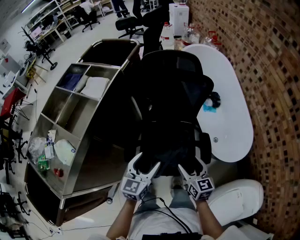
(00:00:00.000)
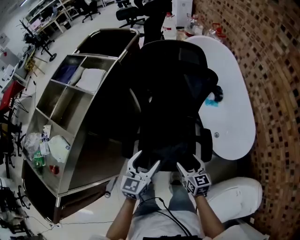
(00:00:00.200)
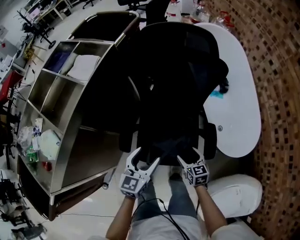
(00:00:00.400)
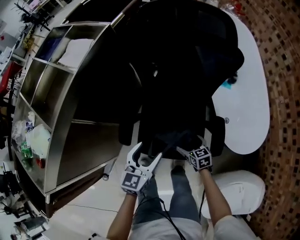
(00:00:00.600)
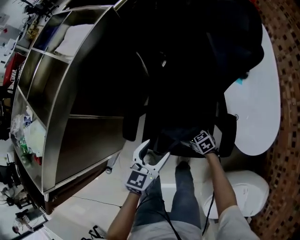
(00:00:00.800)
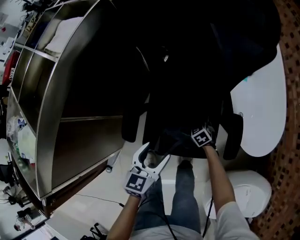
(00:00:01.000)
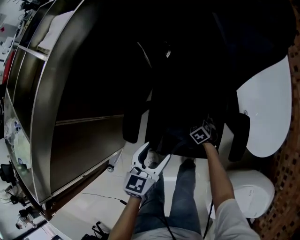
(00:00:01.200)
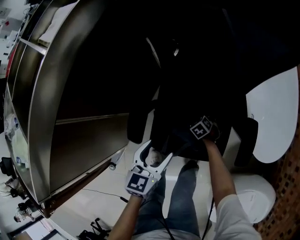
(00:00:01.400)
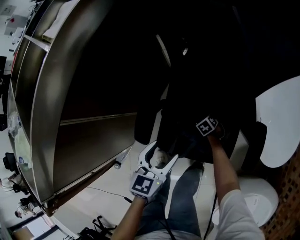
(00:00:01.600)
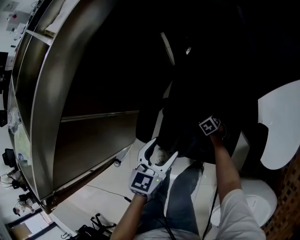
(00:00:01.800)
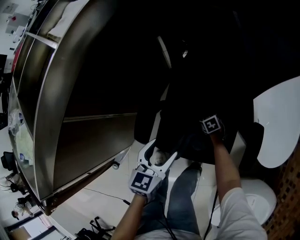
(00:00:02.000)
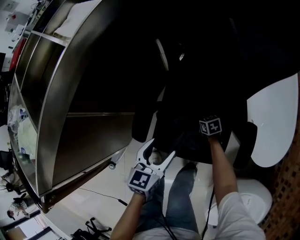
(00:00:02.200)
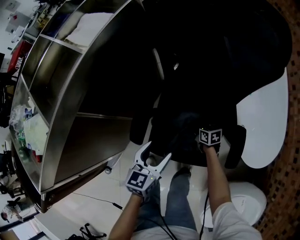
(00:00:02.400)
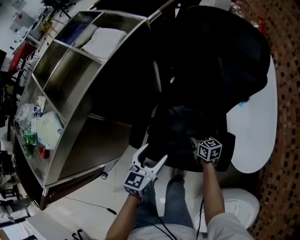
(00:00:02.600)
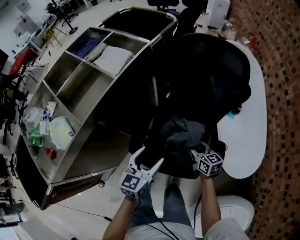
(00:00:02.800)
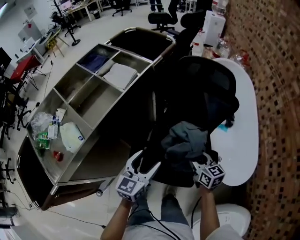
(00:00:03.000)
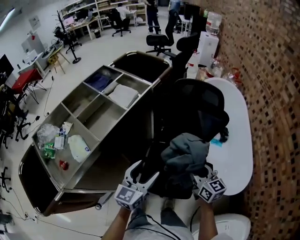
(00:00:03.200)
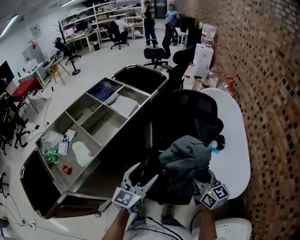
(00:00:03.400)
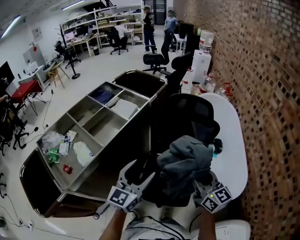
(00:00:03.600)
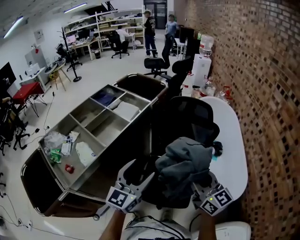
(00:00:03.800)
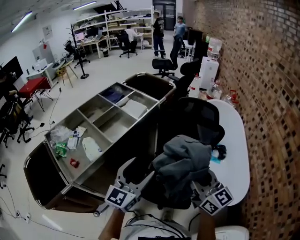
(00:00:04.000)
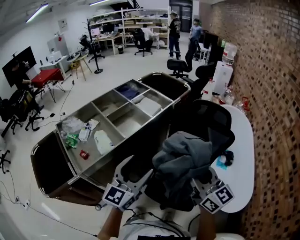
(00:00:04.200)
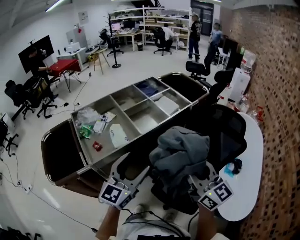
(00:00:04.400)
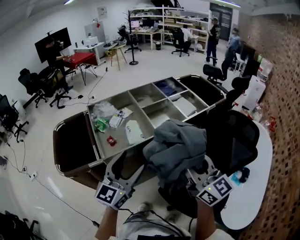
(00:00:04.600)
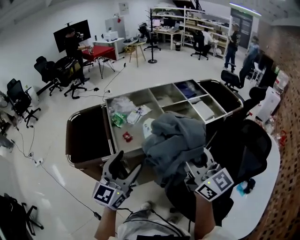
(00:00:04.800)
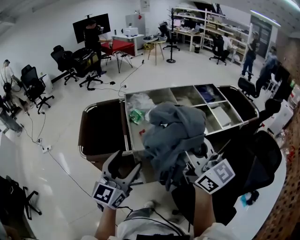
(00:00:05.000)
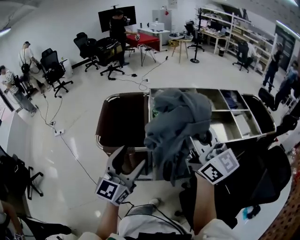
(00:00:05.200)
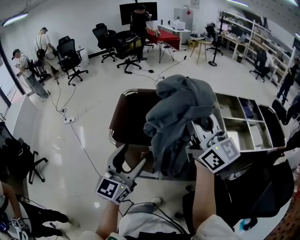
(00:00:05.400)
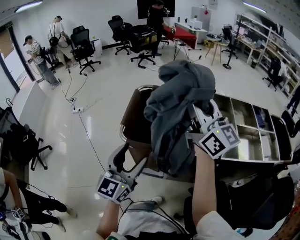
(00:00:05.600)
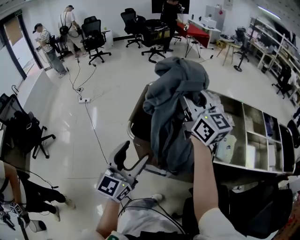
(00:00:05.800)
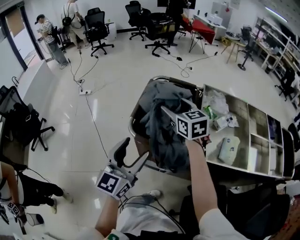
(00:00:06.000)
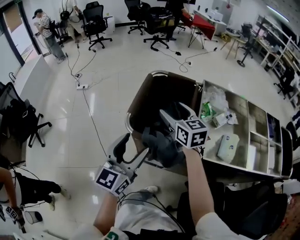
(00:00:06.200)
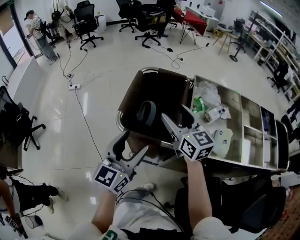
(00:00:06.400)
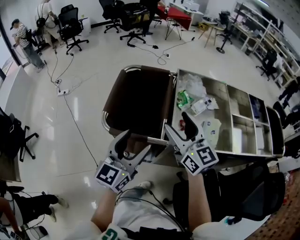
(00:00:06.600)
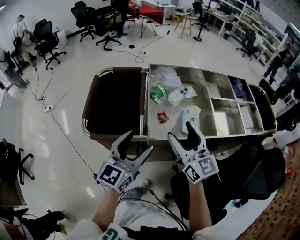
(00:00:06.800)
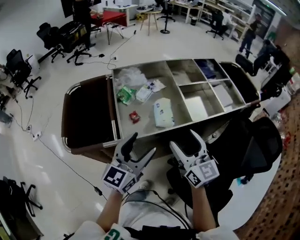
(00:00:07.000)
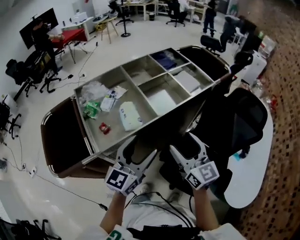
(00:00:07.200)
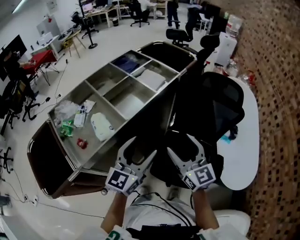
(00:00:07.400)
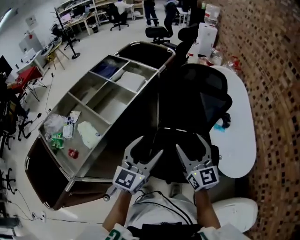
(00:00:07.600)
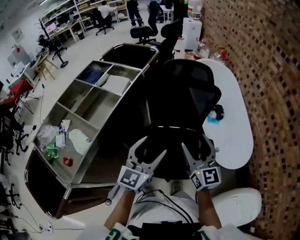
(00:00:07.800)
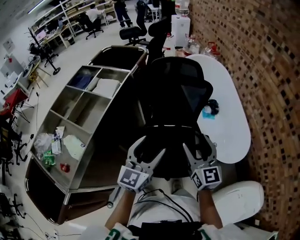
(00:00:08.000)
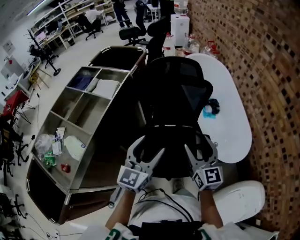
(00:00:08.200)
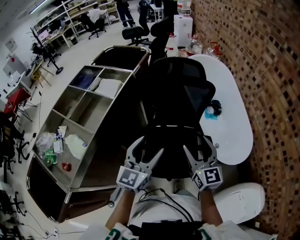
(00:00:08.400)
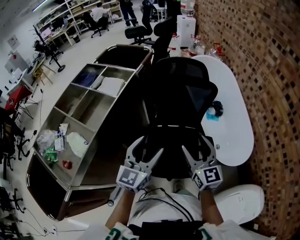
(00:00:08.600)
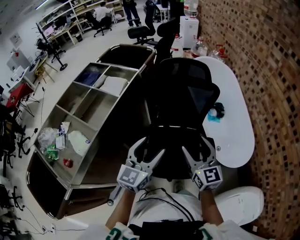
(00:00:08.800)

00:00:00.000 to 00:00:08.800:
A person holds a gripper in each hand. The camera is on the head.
00:00:00.000 to 00:00:01.400: The right gripper goes about 50 cm downward, tips its fingers downward by some 50 degrees, and opens. The left gripper heads downward, covering about 25 cm.
00:00:01.400 to 00:00:03.000: The left gripper heads upward, covering about 25 cm, and changes its angle by some 20 degrees, while the right gripper travels upward by roughly 50 cm, angles its fingers upward, by some 50 degrees, and closes.
00:00:03.000 to 00:00:04.400: The left gripper is displaced upward, to the left and backward by about 30 cm, and rotates approximately 30 degrees. Meanwhile the right gripper heads upward and to the left, covering about 40 cm, and swivels some 40 degrees.
00:00:04.400 to 00:00:05.800: The pair of grippers is taken about 50 cm. The left gripper turns by about 60 degrees. Meanwhile the right gripper rotates some 50 degrees.
00:00:05.800 to 00:00:07.400: The two grippers travel together, about 50 cm. The left gripper changes its angle by approximately 70 degrees; the right gripper turns by about 60 degrees.
00:00:07.400 to 00:00:08.800: The right gripper moves about 20 cm, and changes its angle by approximately 30 degrees; the left gripper changes place by approximately 15 cm.

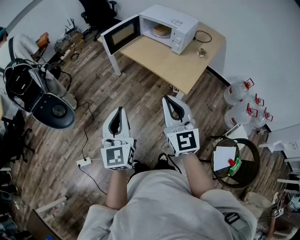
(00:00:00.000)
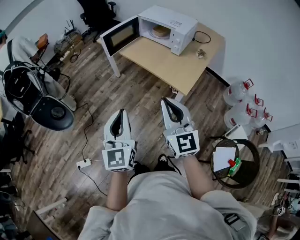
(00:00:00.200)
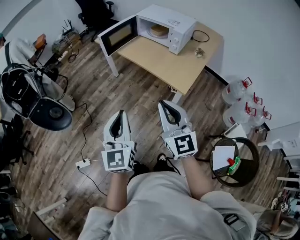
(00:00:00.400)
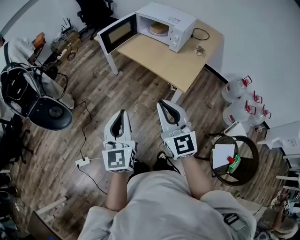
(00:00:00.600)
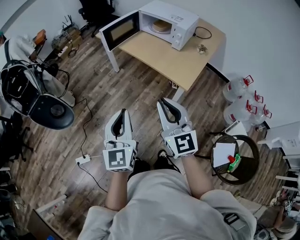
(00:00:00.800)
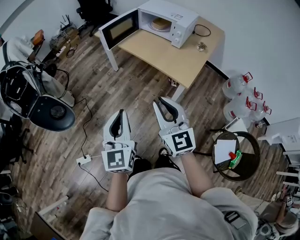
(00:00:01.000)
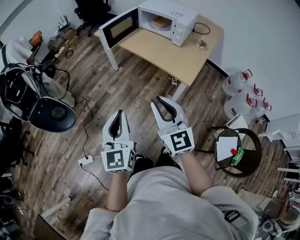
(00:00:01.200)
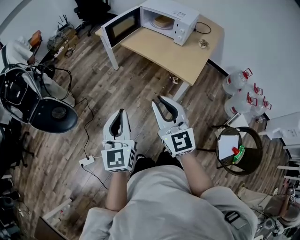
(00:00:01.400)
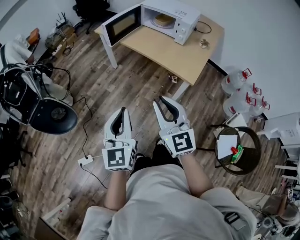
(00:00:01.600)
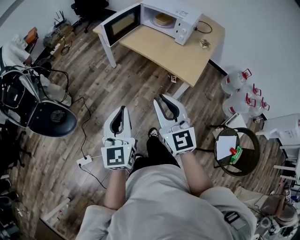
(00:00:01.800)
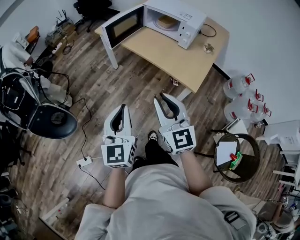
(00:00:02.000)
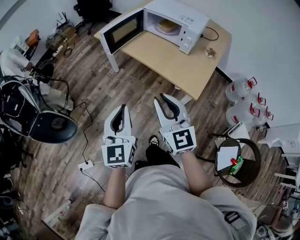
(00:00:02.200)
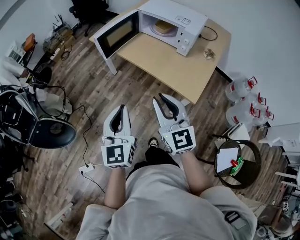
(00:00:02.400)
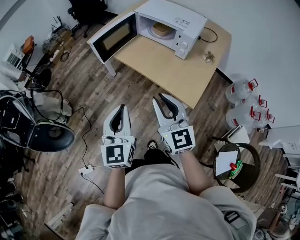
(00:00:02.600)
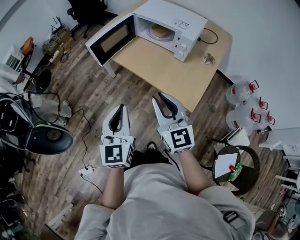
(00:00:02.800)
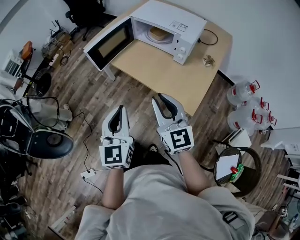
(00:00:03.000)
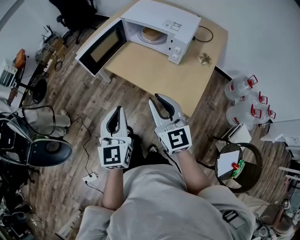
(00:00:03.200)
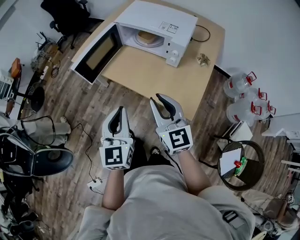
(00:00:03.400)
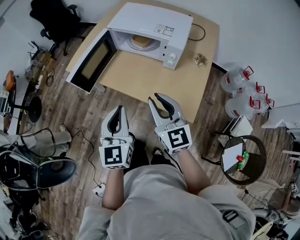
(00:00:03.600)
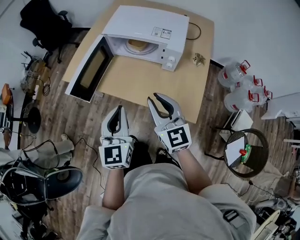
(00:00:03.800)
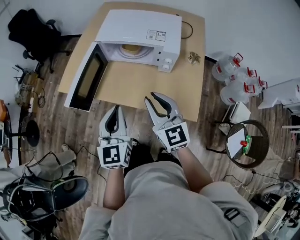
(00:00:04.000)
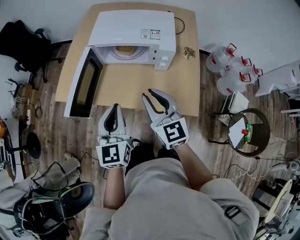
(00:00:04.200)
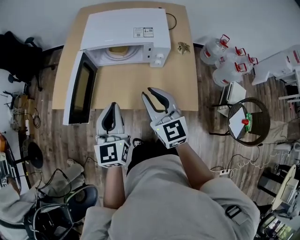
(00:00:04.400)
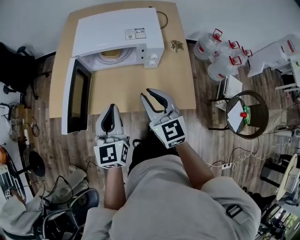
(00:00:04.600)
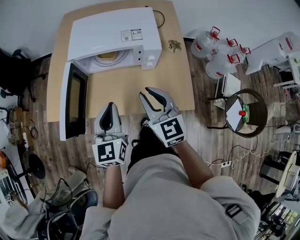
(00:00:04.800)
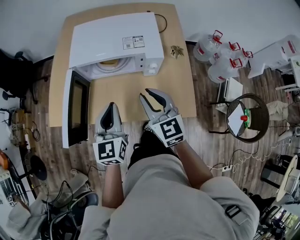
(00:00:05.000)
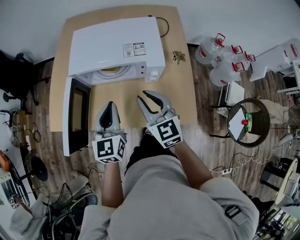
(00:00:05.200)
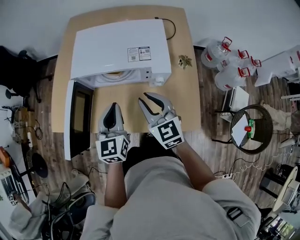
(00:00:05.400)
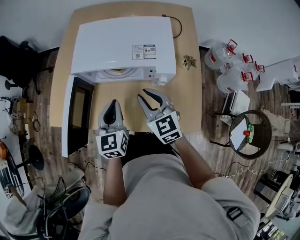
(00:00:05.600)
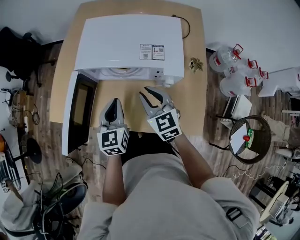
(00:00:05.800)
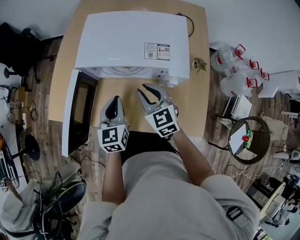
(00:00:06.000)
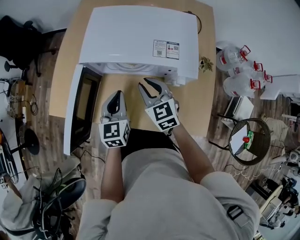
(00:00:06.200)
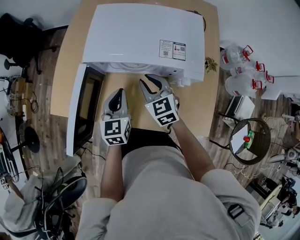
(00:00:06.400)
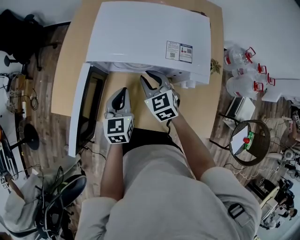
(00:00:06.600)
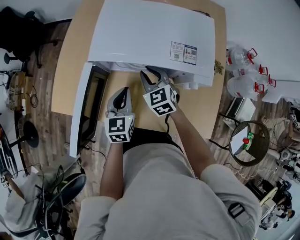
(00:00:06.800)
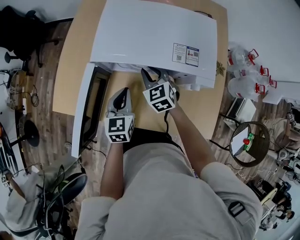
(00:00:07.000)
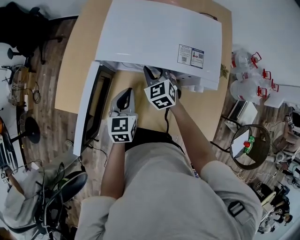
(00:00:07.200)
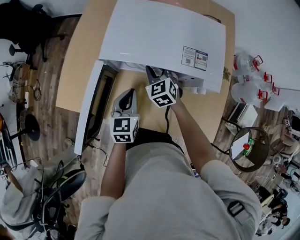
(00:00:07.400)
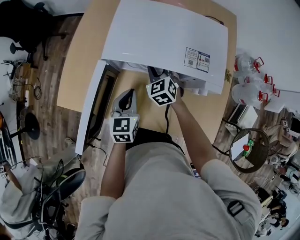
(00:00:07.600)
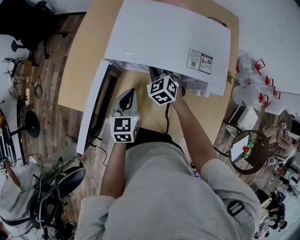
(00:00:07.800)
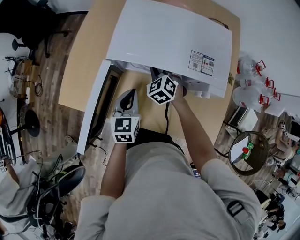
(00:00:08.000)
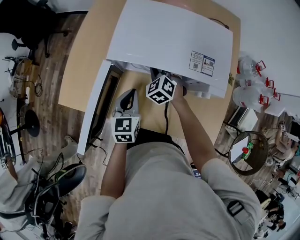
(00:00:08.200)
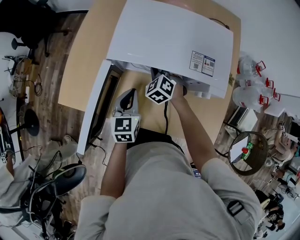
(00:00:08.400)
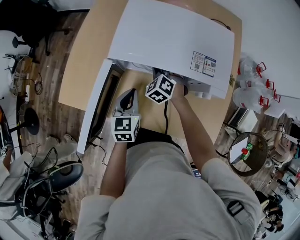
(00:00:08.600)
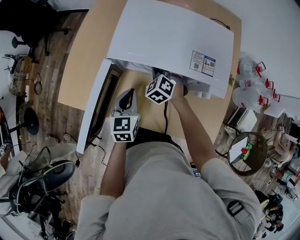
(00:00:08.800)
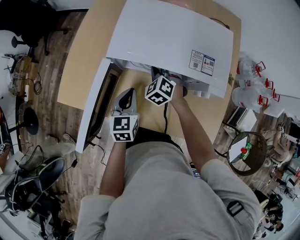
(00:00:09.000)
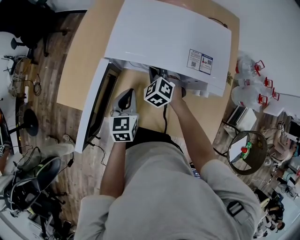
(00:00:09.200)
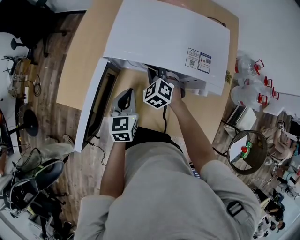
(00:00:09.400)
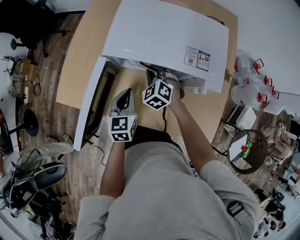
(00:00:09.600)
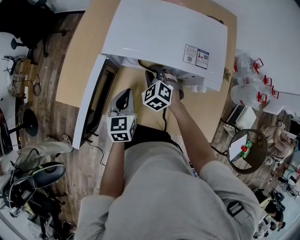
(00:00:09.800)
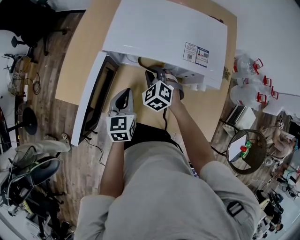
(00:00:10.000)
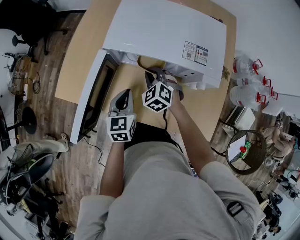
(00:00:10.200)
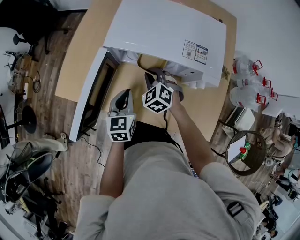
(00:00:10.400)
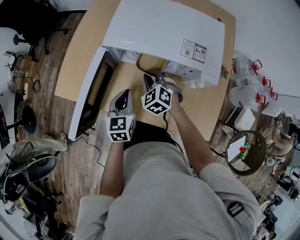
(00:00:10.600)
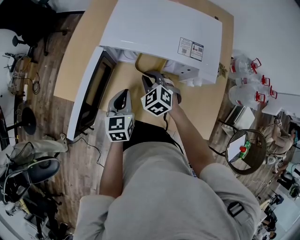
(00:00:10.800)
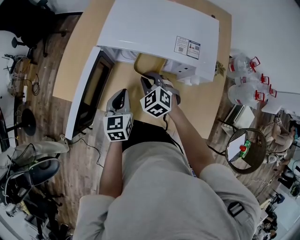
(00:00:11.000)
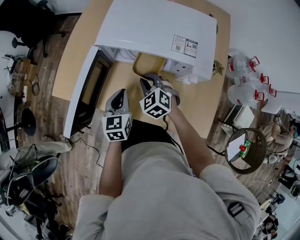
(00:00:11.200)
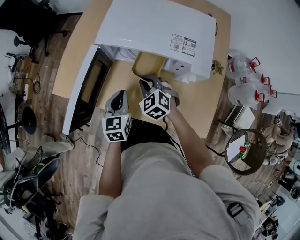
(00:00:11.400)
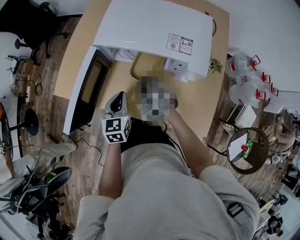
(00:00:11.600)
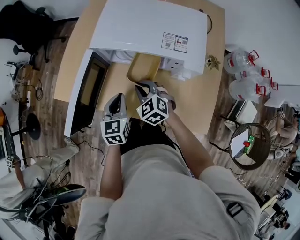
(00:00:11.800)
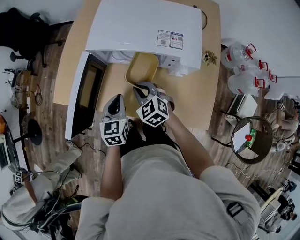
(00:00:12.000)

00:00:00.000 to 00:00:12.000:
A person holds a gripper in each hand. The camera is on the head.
00:00:00.000 to 00:00:01.600: Both grippers move to the left, about 10 cm.
00:00:01.600 to 00:00:03.000: The grippers both shift forward and to the right by about 25 cm.
00:00:03.000 to 00:00:04.400: The right gripper ends up approximately 20 cm from where it was, and turns by roughly 30 degrees, while the left gripper moves approximately 25 cm, and rotates roughly 30 degrees.
00:00:04.400 to 00:00:06.000: The grippers both shift forward and downward by about 20 cm.
00:00:06.000 to 00:00:07.600: The left gripper moves downward, approximately 5 cm; the right gripper moves forward, downward and to the left, roughly 15 cm, and turns by approximately 20 degrees.
00:00:07.600 to 00:00:09.000: The right gripper swivels roughly 20 degrees.
00:00:09.000 to 00:00:10.400: The right gripper is displaced backward by roughly 5 cm.
00:00:10.400 to 00:00:12.000: The right gripper is displaced backward by about 10 cm.

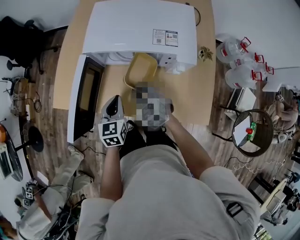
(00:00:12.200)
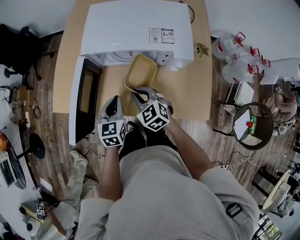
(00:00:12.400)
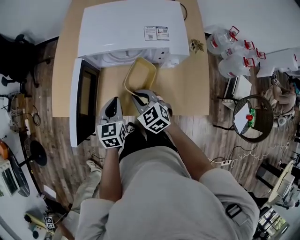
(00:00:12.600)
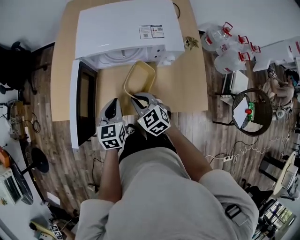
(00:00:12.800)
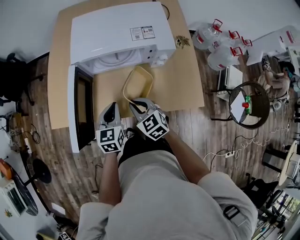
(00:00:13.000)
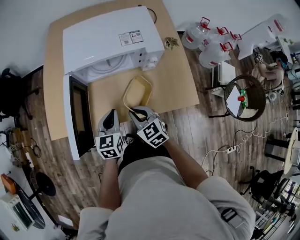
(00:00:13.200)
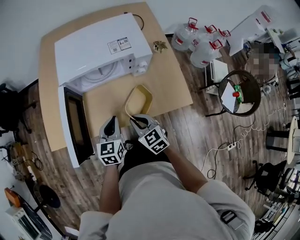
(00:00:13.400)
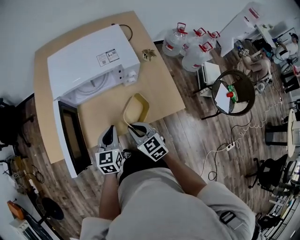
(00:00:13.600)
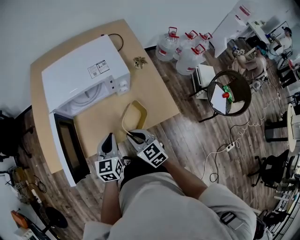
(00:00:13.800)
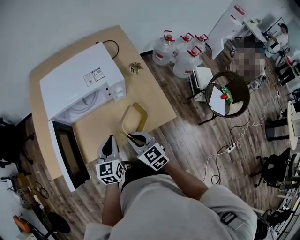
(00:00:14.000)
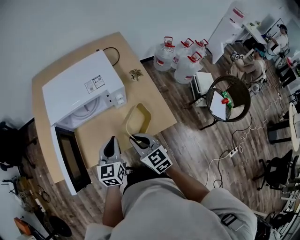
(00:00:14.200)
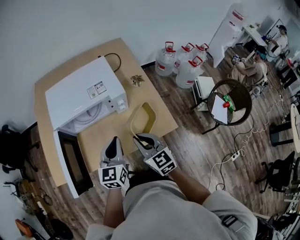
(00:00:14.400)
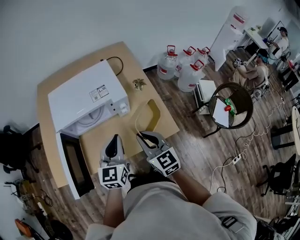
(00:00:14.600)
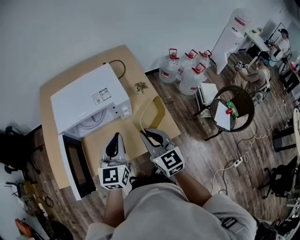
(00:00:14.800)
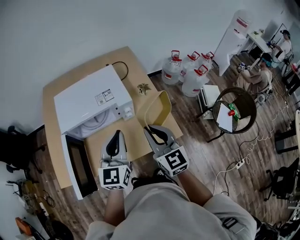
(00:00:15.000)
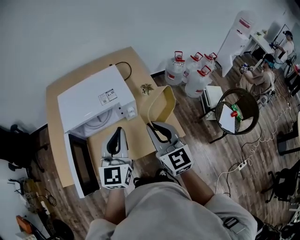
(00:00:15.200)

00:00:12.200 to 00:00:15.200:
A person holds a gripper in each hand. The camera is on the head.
00:00:12.200 to 00:00:13.800: The right gripper ends up some 15 cm from where it was, and rotates some 40 degrees; the left gripper ends up some 10 cm from where it was, and swivels some 30 degrees.
00:00:13.800 to 00:00:15.200: The left gripper is displaced upward by roughly 20 cm, and changes its angle by some 30 degrees. Meanwhile the right gripper travels upward and to the right by about 25 cm, and rotates roughly 30 degrees.
